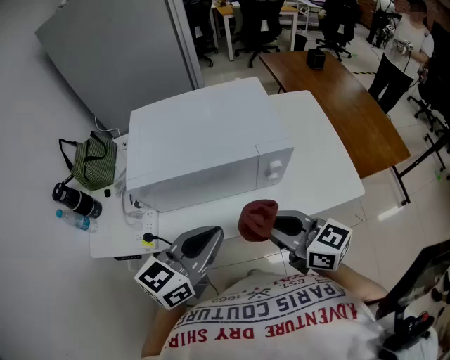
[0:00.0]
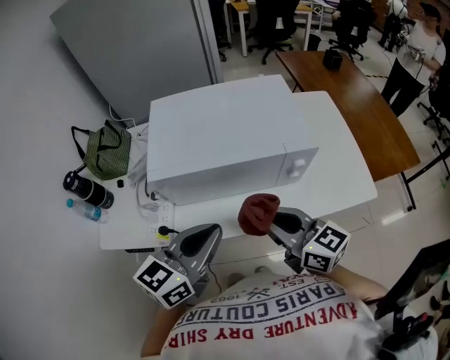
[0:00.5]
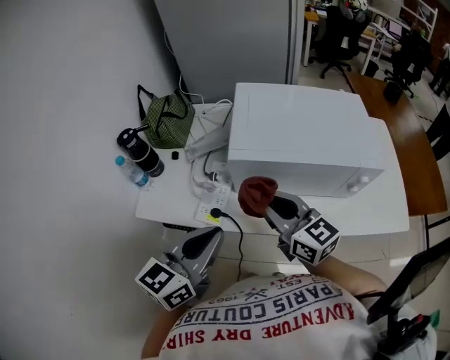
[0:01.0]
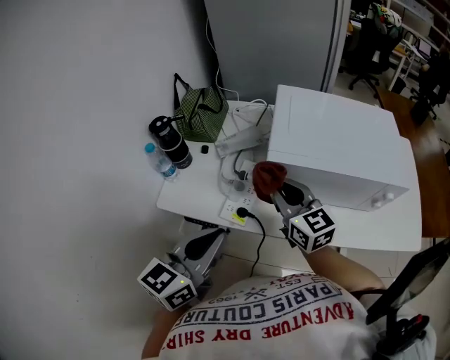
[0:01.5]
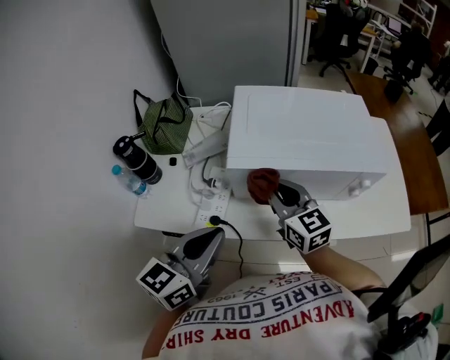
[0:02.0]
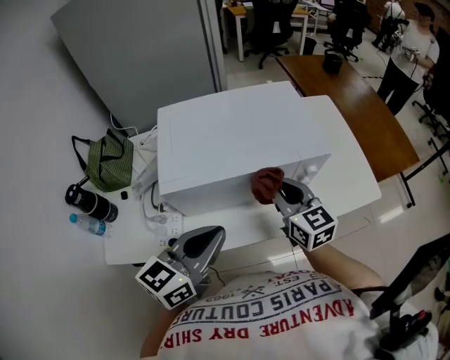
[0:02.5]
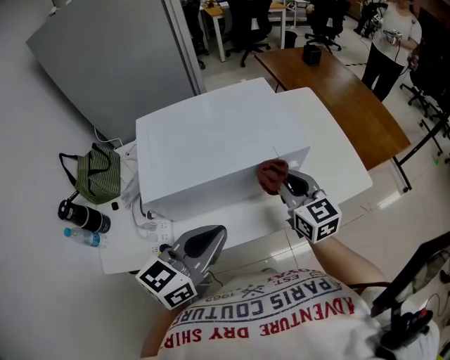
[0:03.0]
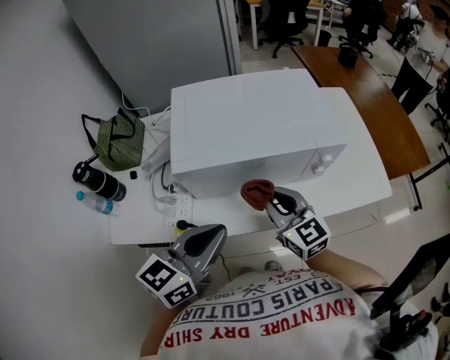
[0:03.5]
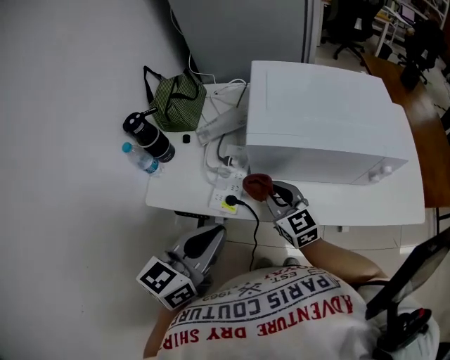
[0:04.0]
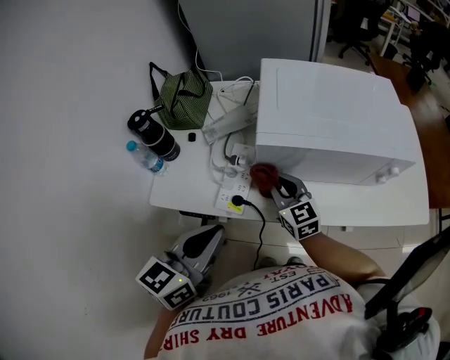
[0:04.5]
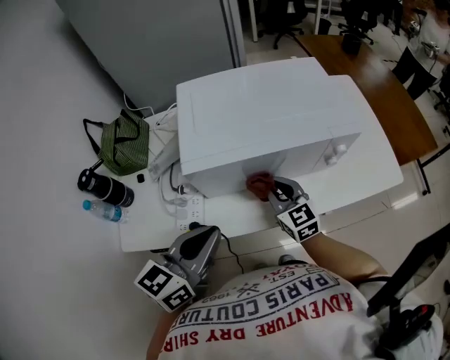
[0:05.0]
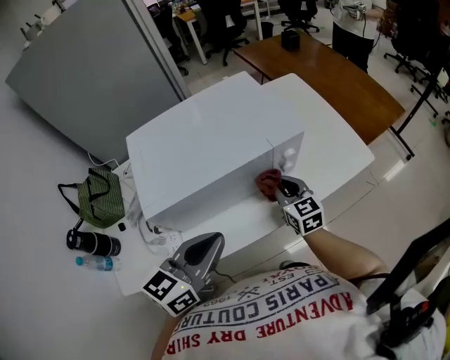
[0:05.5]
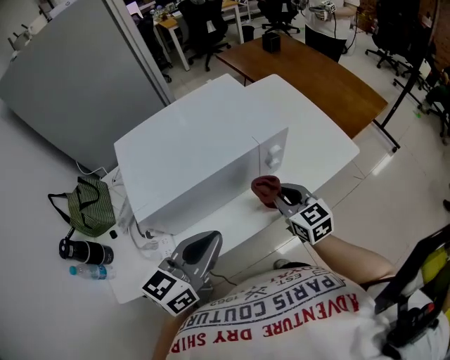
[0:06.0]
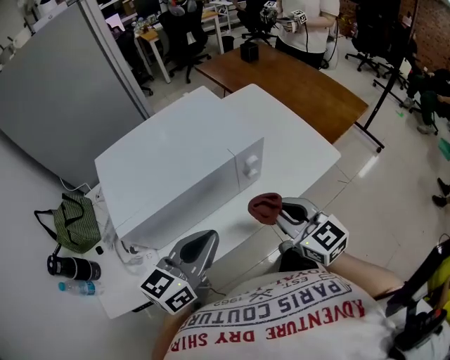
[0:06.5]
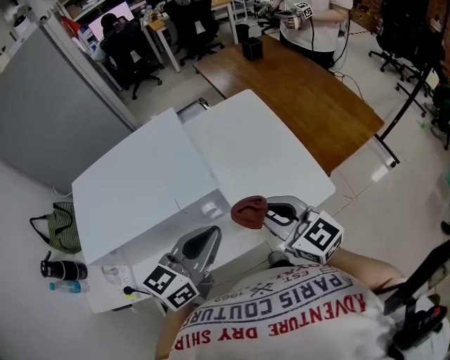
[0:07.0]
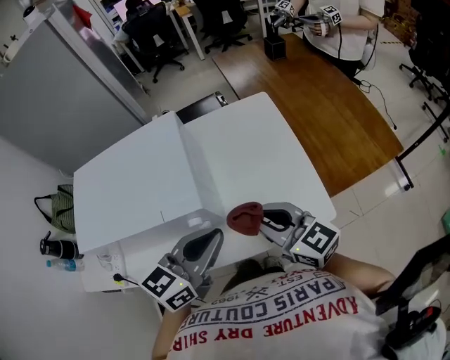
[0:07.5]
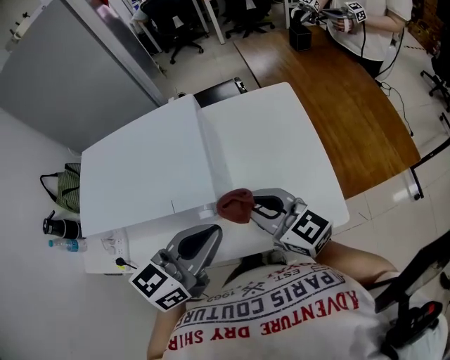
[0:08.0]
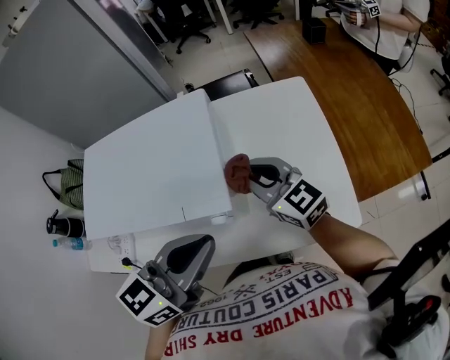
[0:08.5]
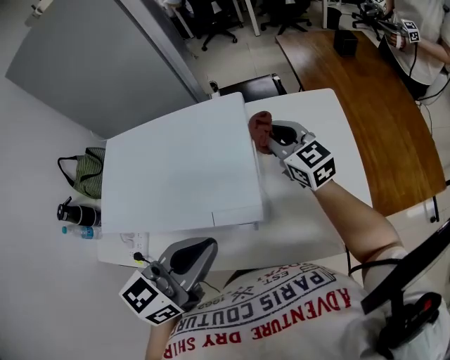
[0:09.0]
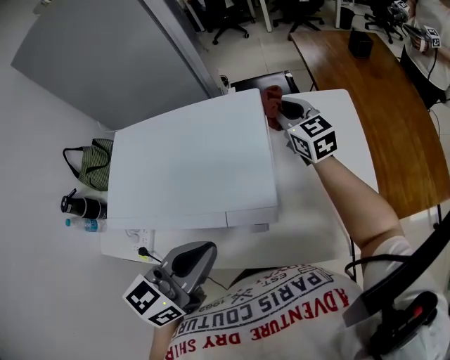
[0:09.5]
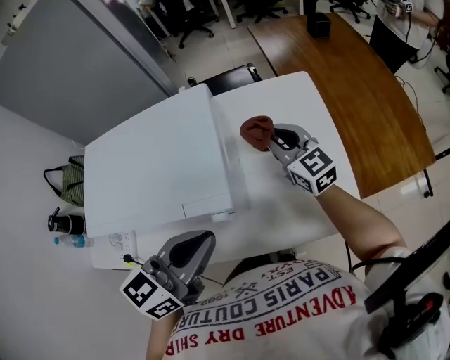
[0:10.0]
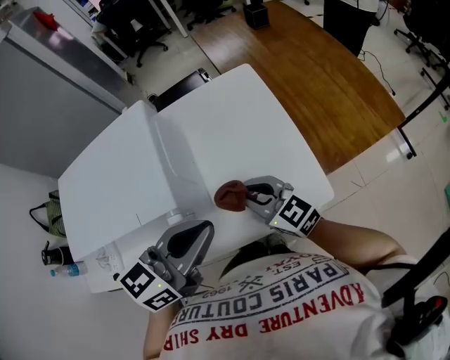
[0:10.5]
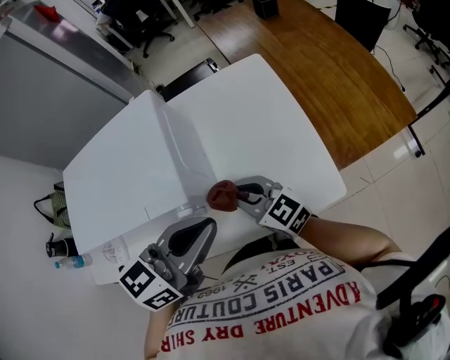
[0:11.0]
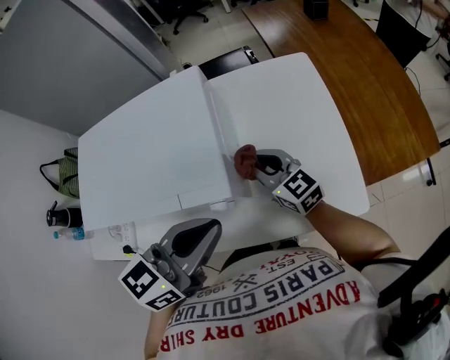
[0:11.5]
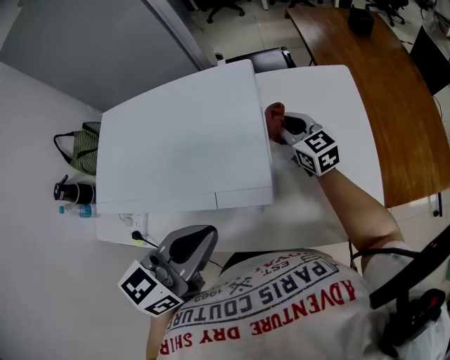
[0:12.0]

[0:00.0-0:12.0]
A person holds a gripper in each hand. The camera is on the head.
0:00.0 to 0:02.0: The right gripper heads to the left and forward, covering some 25 cm, while the left gripper shifts about 20 cm to the left.
0:02.0 to 0:04.0: The right gripper shifts about 10 cm downward.
0:04.0 to 0:06.0: The right gripper changes place by some 30 cm, and changes its angle by some 40 degrees; the left gripper ends up approximately 20 cm from where it was, and changes its angle by approximately 40 degrees.
0:06.0 to 0:08.0: The right gripper moves roughly 20 cm, and rotates some 40 degrees; the left gripper moves approximately 30 cm.
0:08.0 to 0:10.0: The right gripper heads forward, covering about 20 cm.
0:10.0 to 0:12.0: The left gripper moves to the left, approximately 5 cm; the right gripper is displaced to the left and downward by about 10 cm, and reaches about 15 cm backward, then returns.

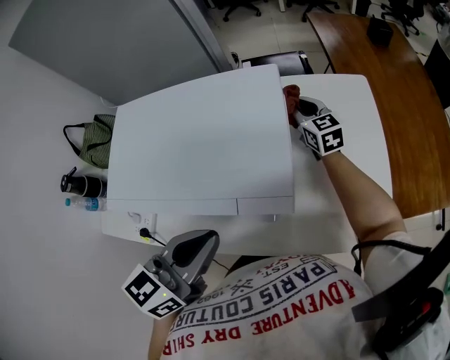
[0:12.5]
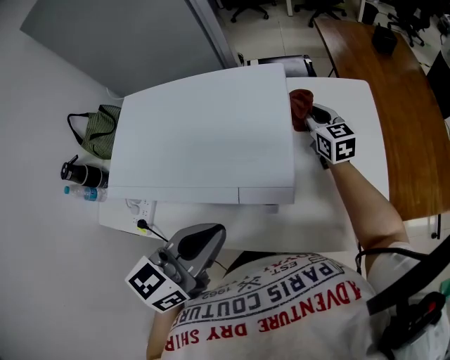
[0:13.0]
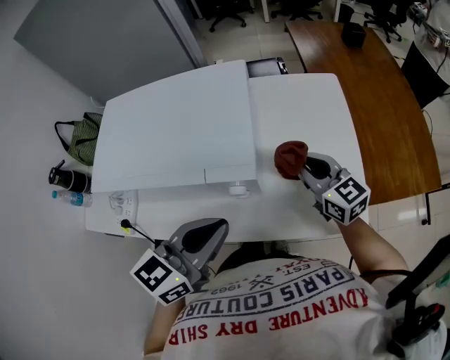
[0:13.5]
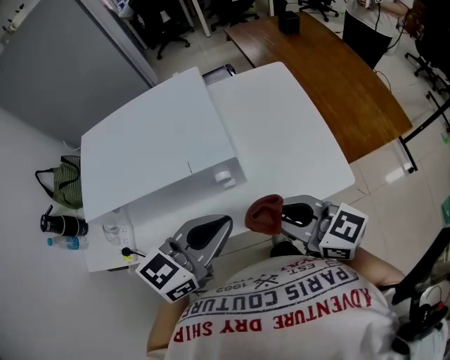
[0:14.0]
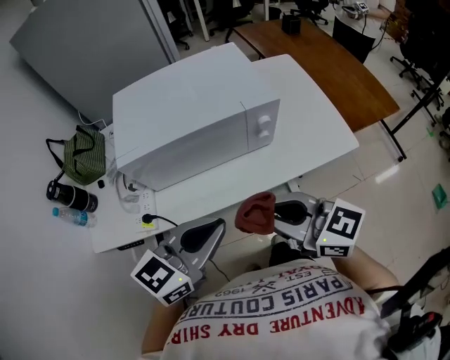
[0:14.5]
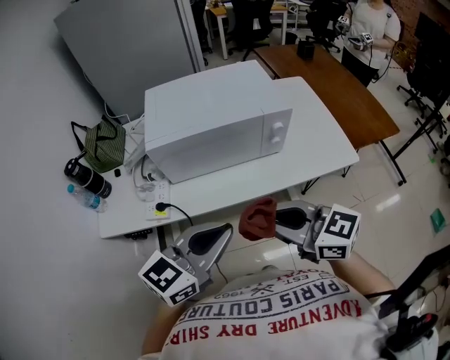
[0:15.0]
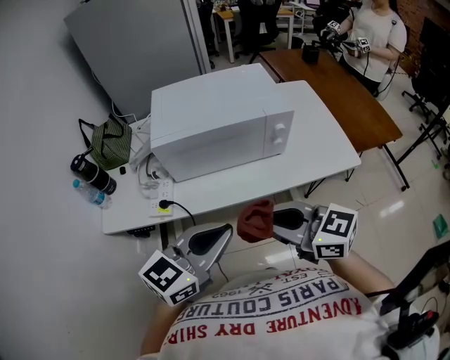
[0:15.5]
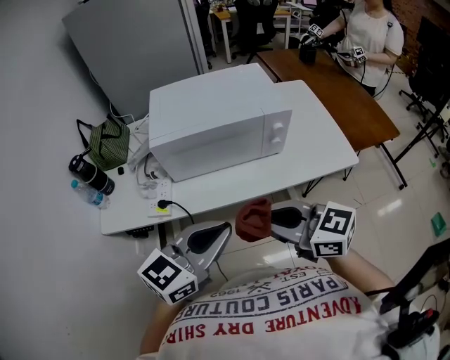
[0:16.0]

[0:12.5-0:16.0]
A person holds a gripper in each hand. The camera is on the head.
0:12.5 to 0:14.5: The left gripper travels backward and to the left by approximately 20 cm, and rotates approximately 30 degrees, while the right gripper travels backward by about 50 cm, and turns by some 20 degrees.
0:14.5 to 0:16.0: Both grippers move backward, roughly 5 cm.

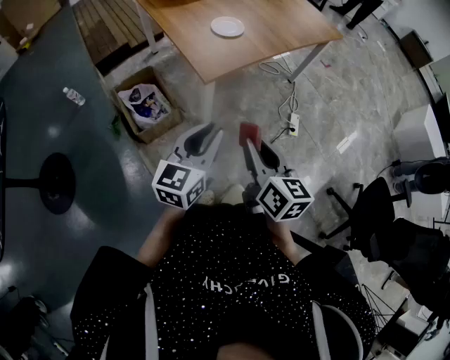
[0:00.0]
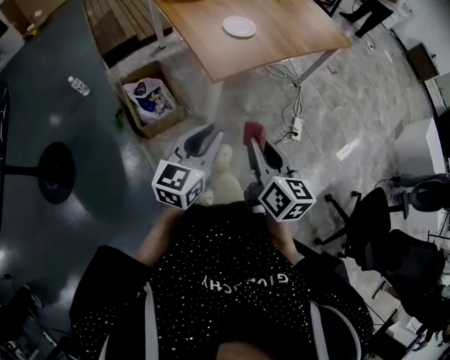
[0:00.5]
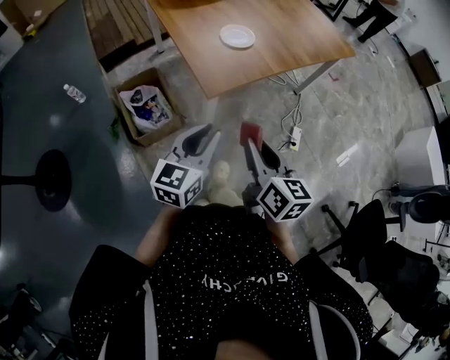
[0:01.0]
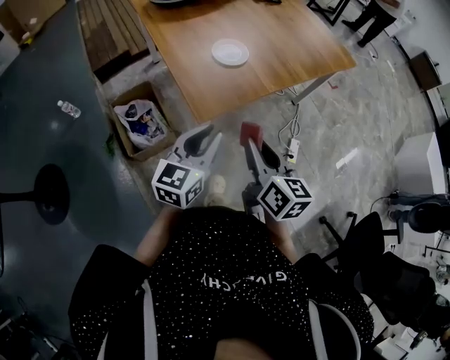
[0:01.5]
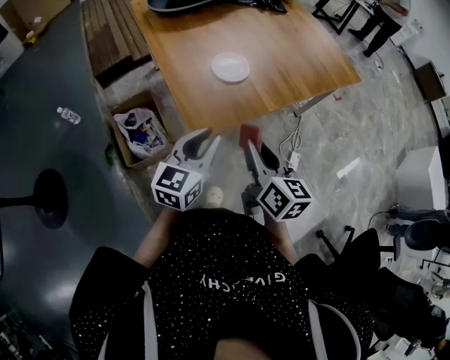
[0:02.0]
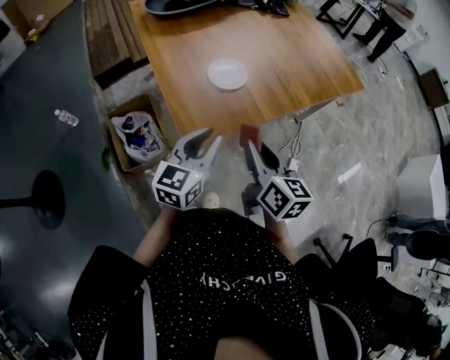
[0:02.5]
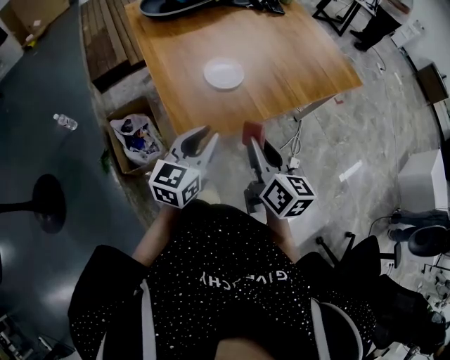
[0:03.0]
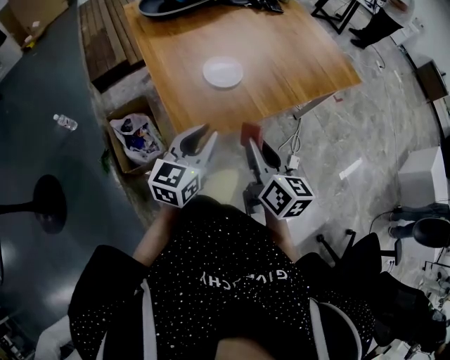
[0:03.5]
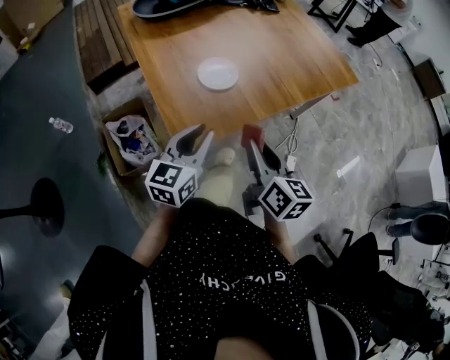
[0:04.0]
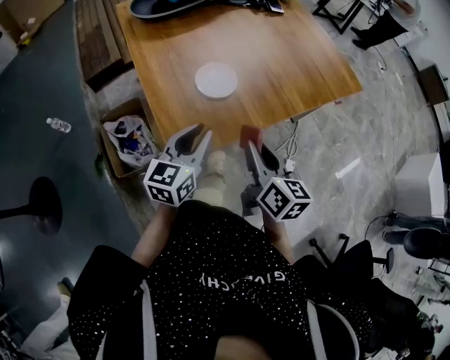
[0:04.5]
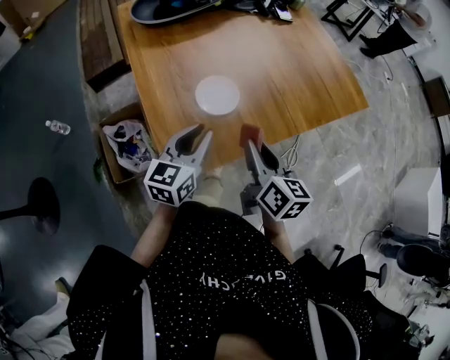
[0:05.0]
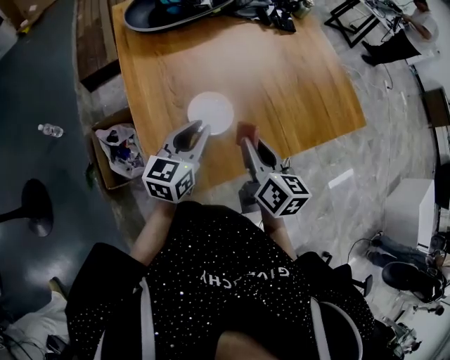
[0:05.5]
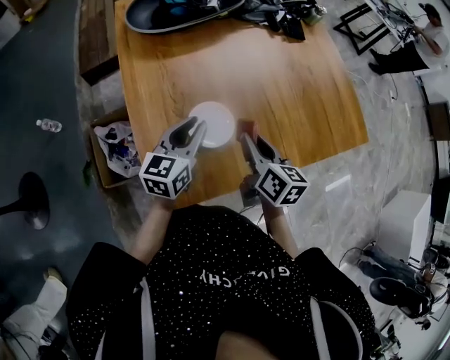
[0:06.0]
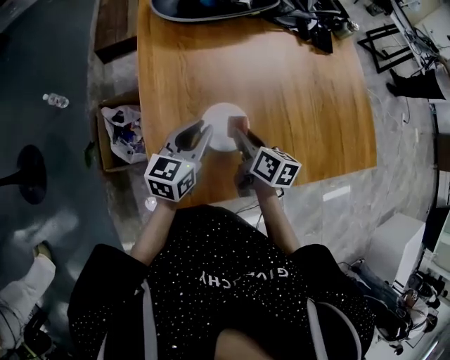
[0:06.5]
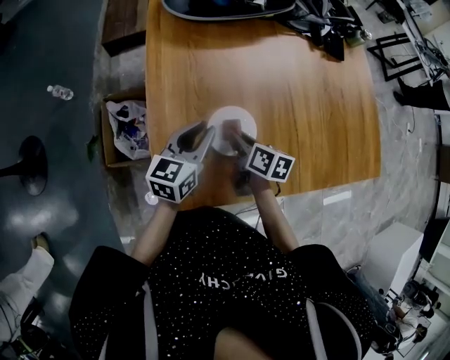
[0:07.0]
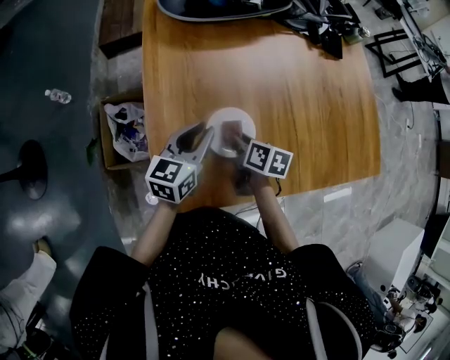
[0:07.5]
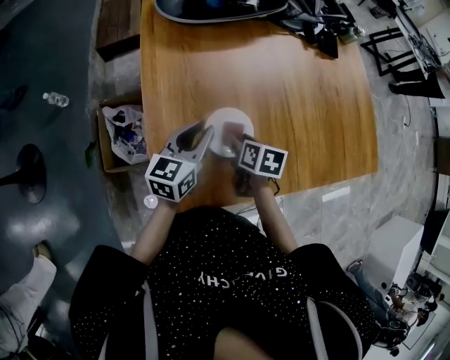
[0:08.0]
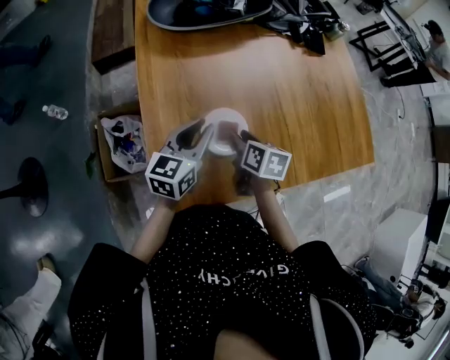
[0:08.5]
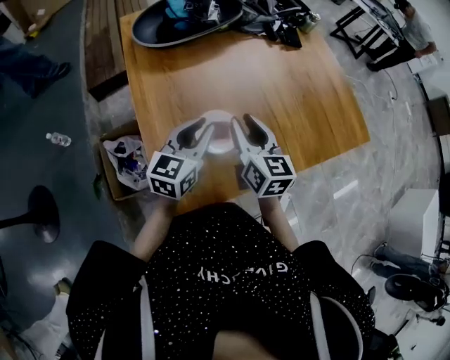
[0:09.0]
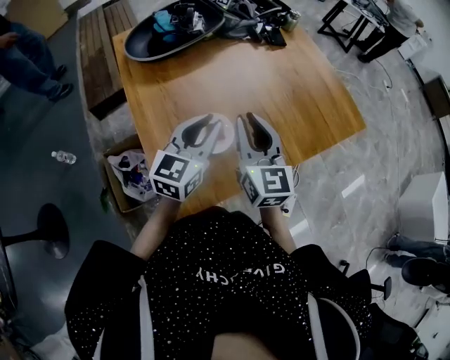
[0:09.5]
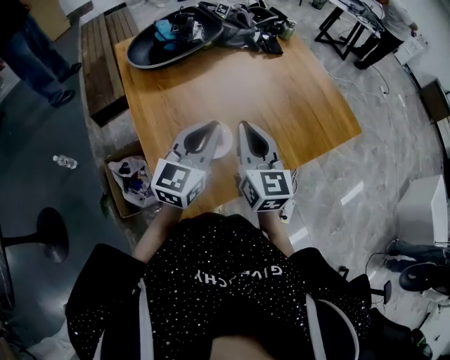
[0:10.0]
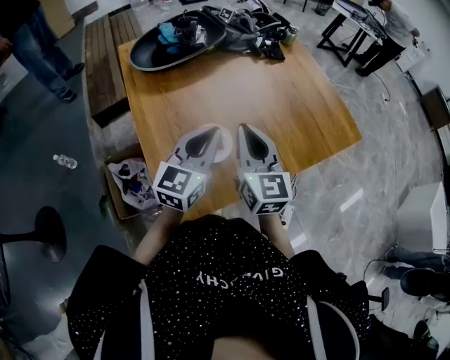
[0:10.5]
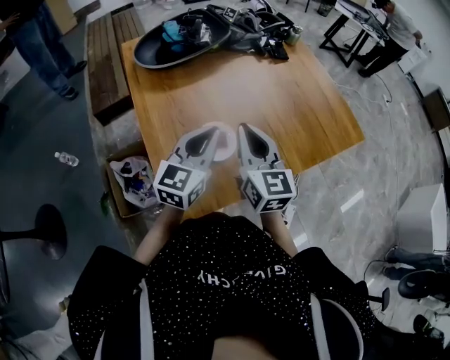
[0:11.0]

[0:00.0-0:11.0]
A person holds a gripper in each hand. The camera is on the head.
0:00.0 to 0:02.0: The two grippers go some 25 cm forward.
0:02.0 to 0:03.5: The right gripper moves some 5 cm.
0:03.5 to 0:05.5: Both grippers travel together forward, roughly 25 cm.
0:05.5 to 0:07.5: The left gripper is displaced forward and downward by roughly 10 cm, while the right gripper is displaced downward and forward by roughly 20 cm, and changes its angle by roughly 30 degrees.
0:07.5 to 0:09.0: The left gripper is displaced upward by approximately 10 cm, while the right gripper goes some 20 cm upward, and rotates about 40 degrees.
0:09.0 to 0:11.0: The right gripper is displaced upward and backward by approximately 10 cm, and closes. Meanwhile the left gripper goes roughly 5 cm upward.
